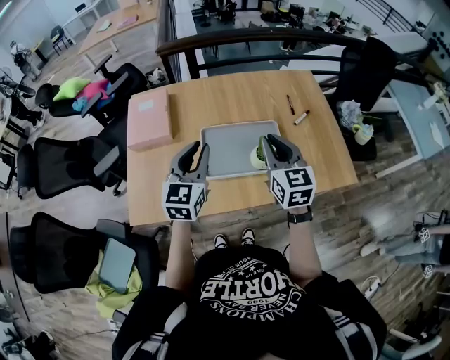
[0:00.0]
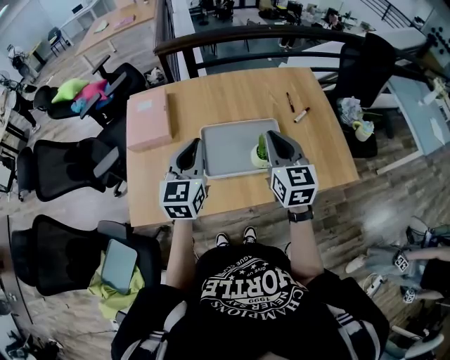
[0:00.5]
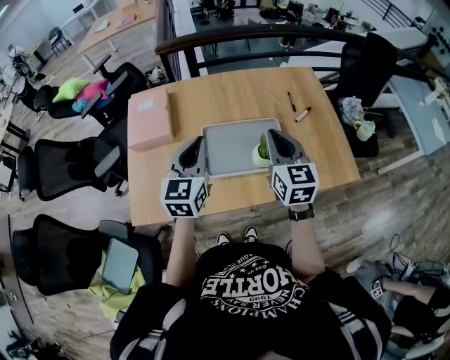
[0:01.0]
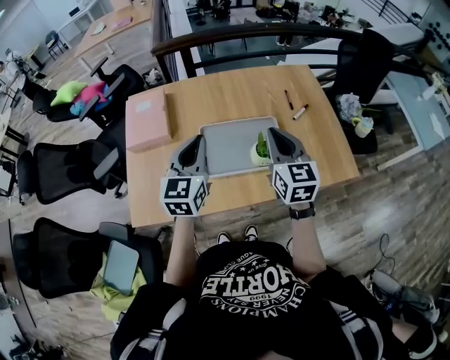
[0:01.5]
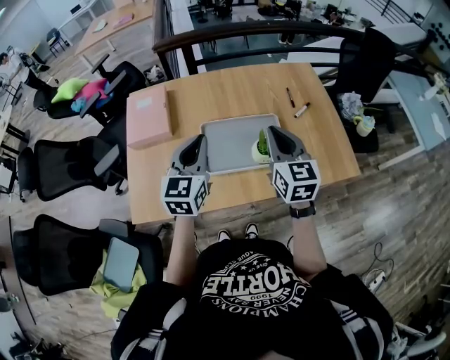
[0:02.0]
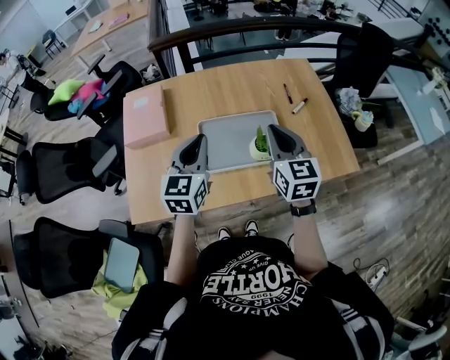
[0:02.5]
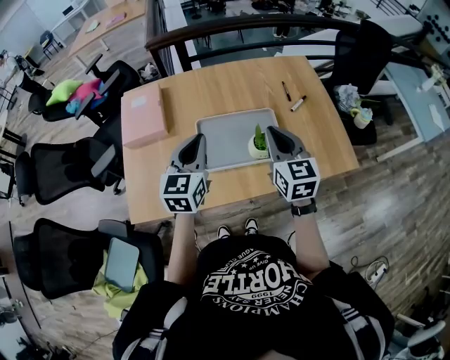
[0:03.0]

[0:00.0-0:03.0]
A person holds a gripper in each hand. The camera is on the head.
0:00.0 to 0:03.0: The grippers move only a little.

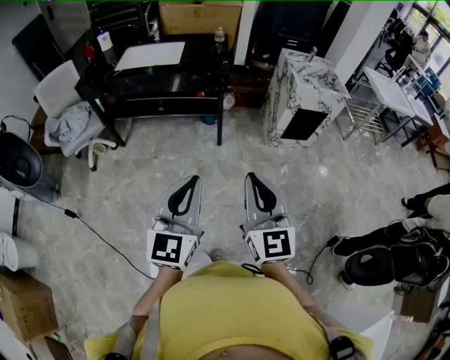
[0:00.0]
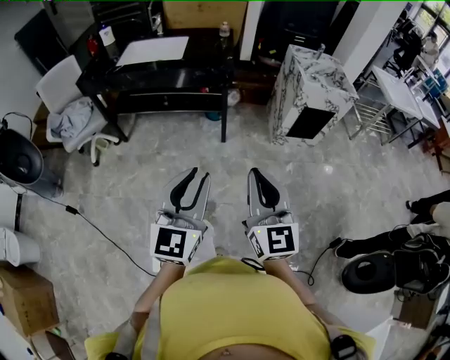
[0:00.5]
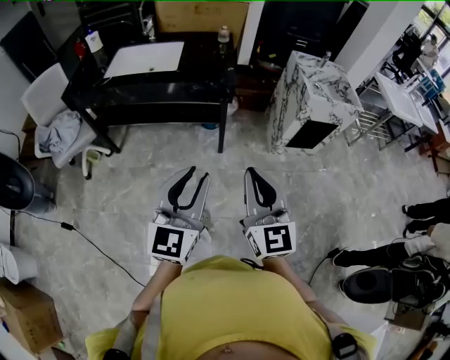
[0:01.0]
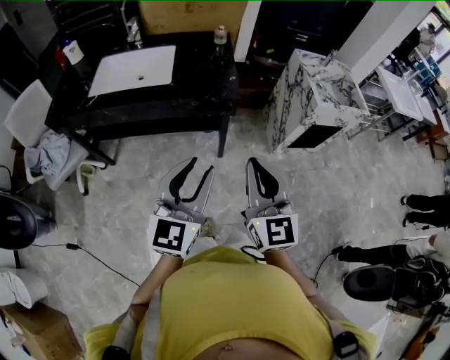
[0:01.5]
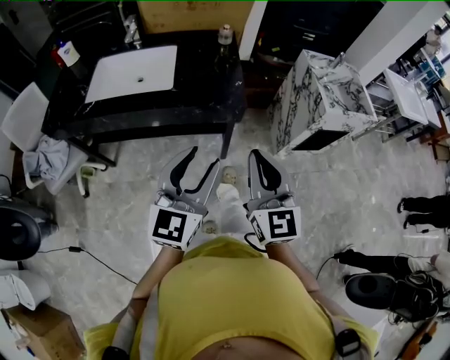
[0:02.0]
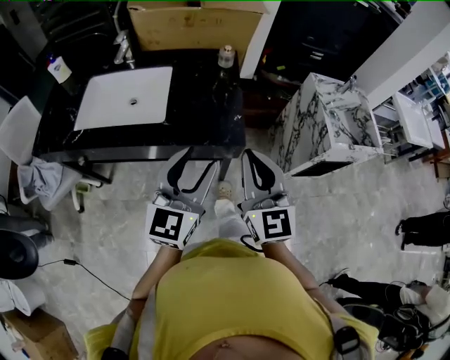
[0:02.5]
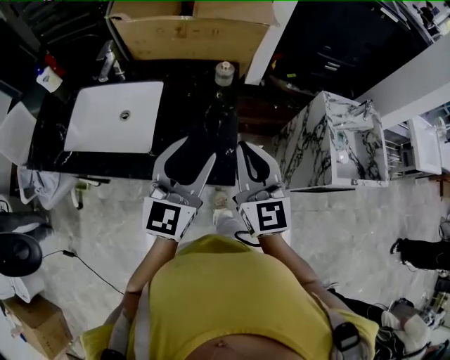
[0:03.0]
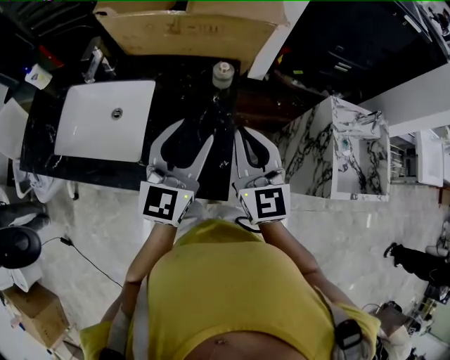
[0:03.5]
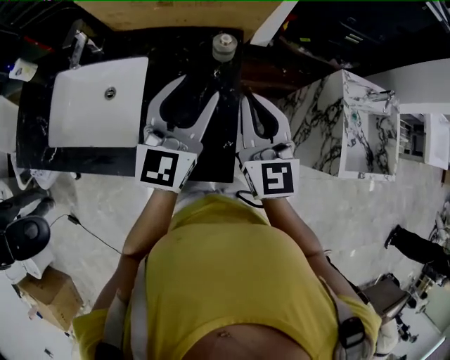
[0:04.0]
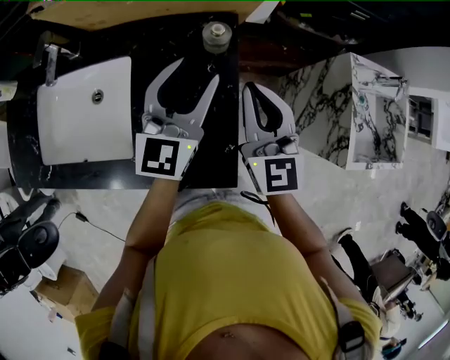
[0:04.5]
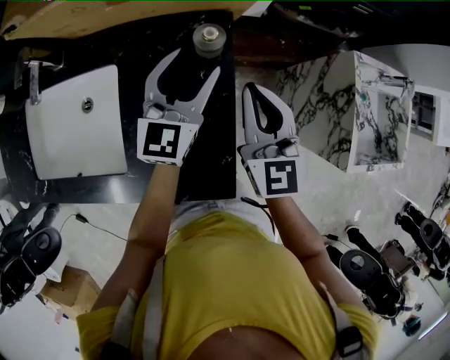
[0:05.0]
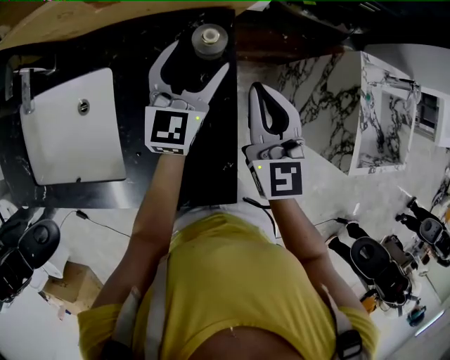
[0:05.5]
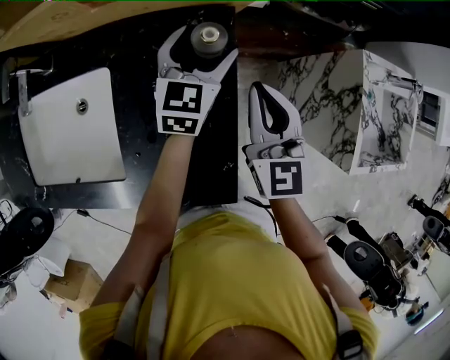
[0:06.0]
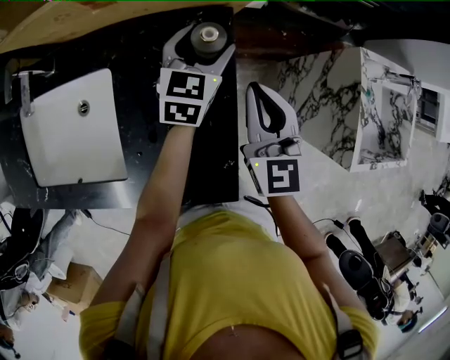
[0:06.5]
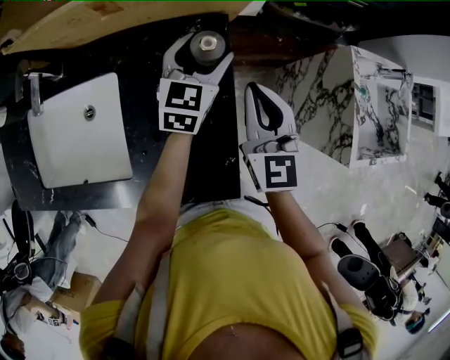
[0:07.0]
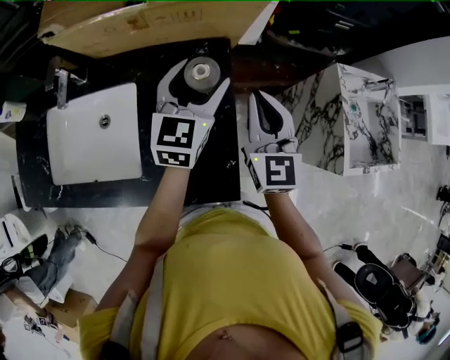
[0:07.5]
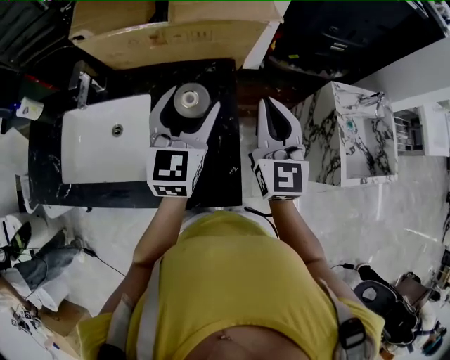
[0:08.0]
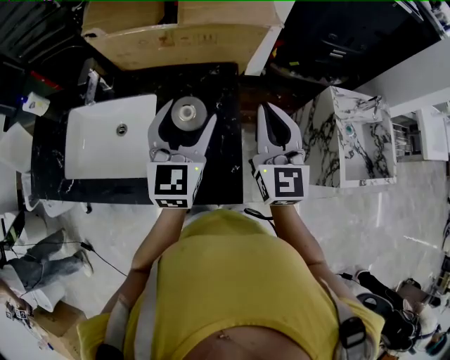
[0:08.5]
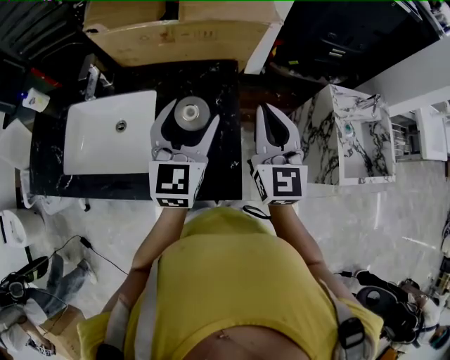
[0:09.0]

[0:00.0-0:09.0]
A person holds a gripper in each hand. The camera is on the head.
0:00.0 to 0:02.0: Both grippers are carried forward, approximately 40 cm. The left gripper opens its fingers.
0:02.0 to 0:04.5: The pair of grippers is taken forward, approximately 60 cm.
0:04.5 to 0:07.0: The right gripper changes place by about 5 cm. Meanwhile the left gripper goes roughly 15 cm downward and forward.
0:07.0 to 0:09.0: The right gripper shifts about 15 cm upward and backward. Meanwhile the left gripper shifts about 25 cm backward and upward.

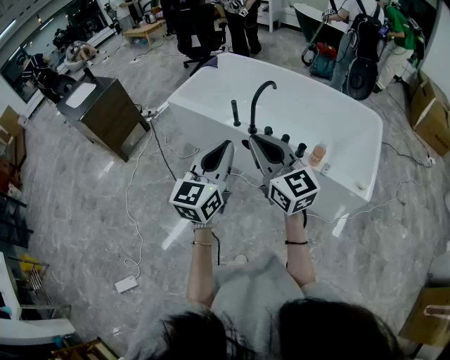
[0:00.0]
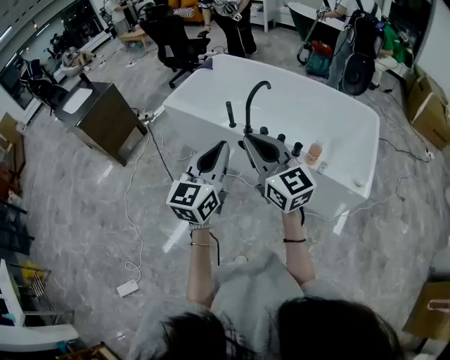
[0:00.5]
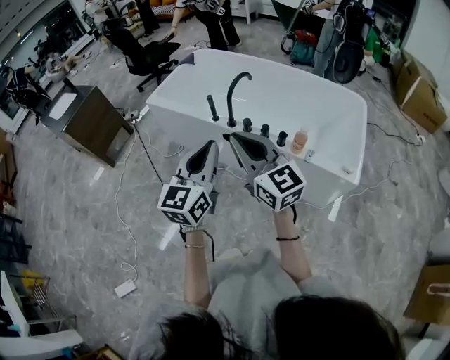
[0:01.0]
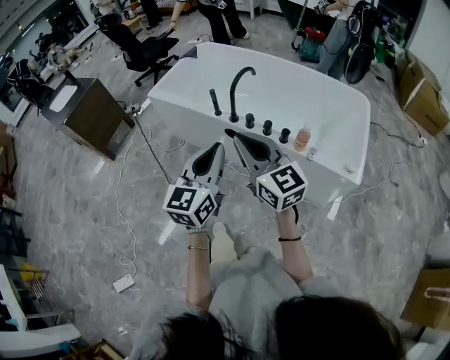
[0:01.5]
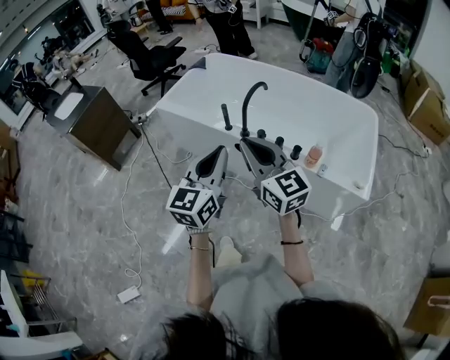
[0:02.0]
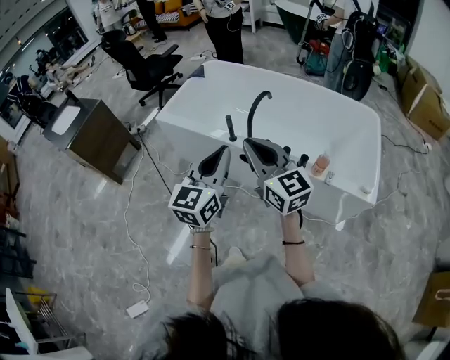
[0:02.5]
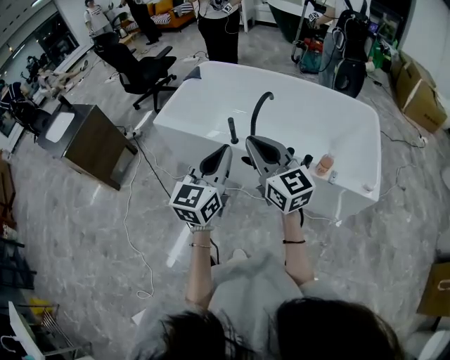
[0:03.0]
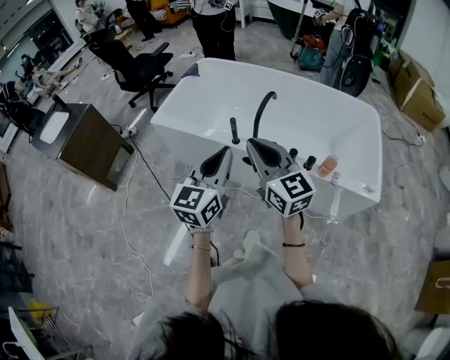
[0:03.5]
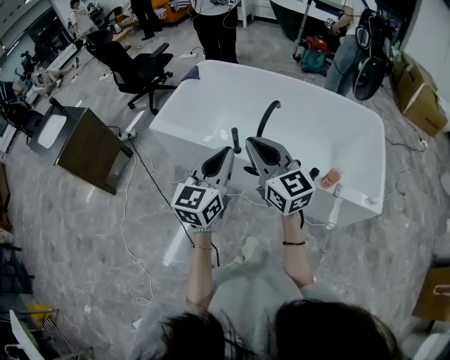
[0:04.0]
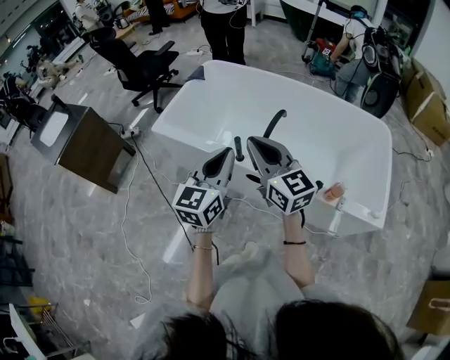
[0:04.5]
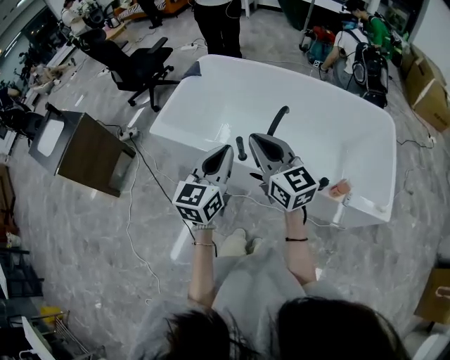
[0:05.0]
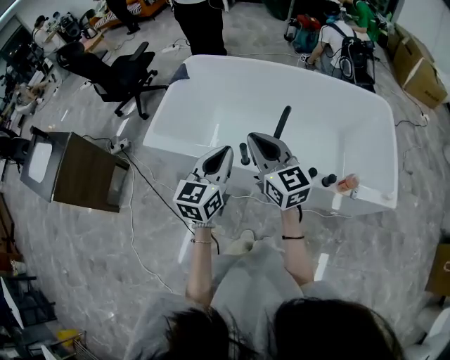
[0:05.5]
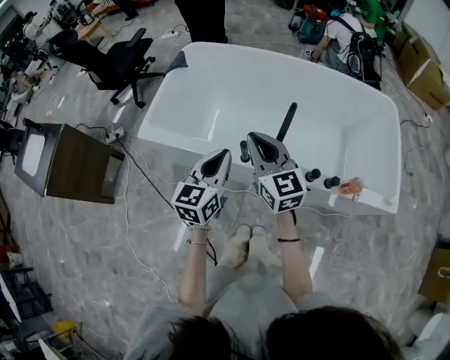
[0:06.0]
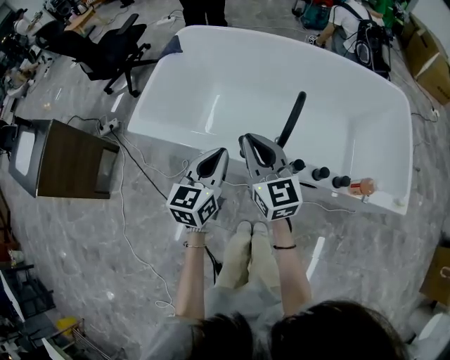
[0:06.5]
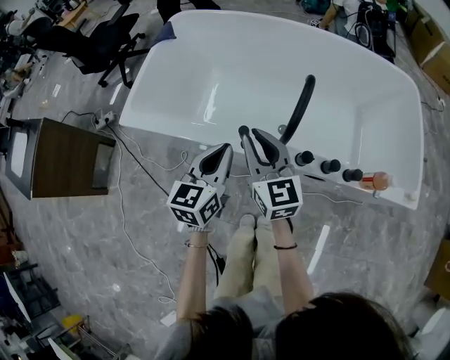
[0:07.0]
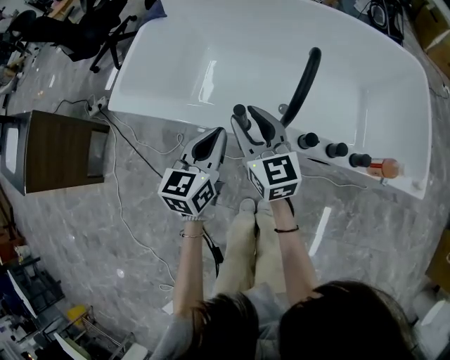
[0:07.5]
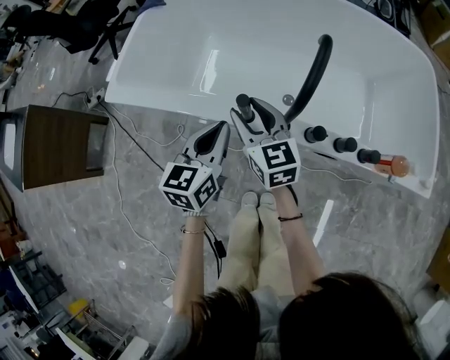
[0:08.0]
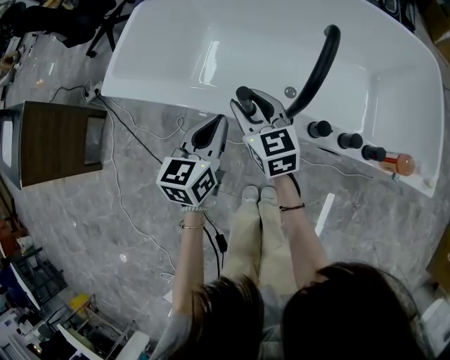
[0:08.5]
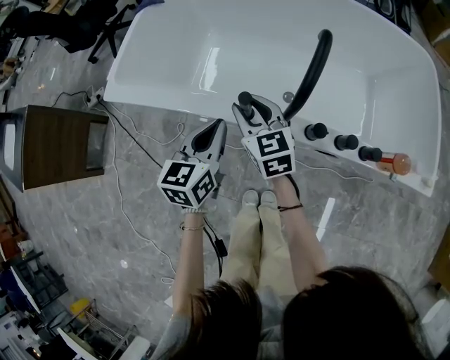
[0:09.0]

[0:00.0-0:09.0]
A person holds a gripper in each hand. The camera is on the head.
0:00.0 to 0:02.0: The right gripper shifts some 5 cm forward. The left gripper ends up about 5 cm from where it was.
0:02.0 to 0:04.5: Both grippers move forward, about 25 cm.
0:04.5 to 0:07.0: The two grippers go some 30 cm downward and forward. The right gripper rotates some 20 degrees.
0:07.0 to 0:09.0: The left gripper travels downward by some 10 cm. Meanwhile the right gripper is displaced downward by about 15 cm, and opens up.

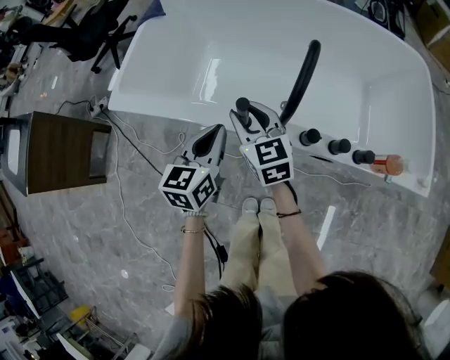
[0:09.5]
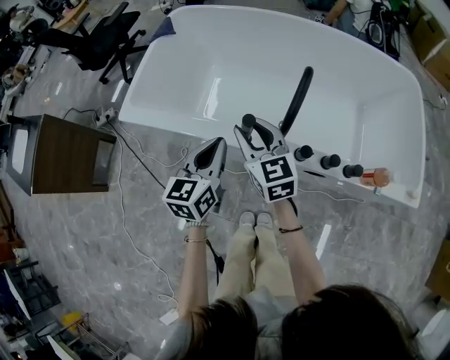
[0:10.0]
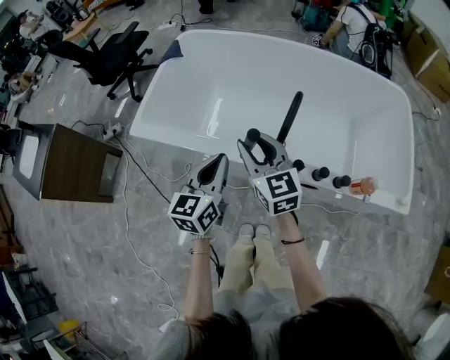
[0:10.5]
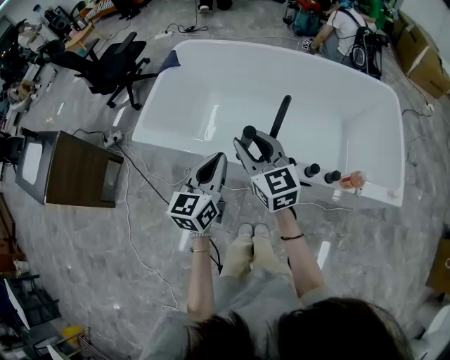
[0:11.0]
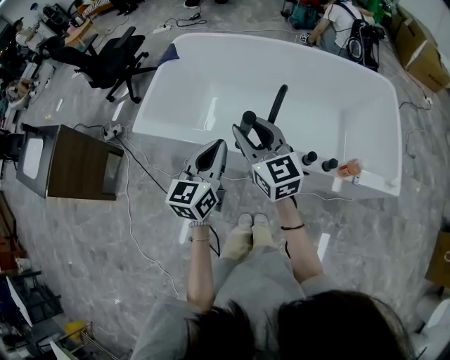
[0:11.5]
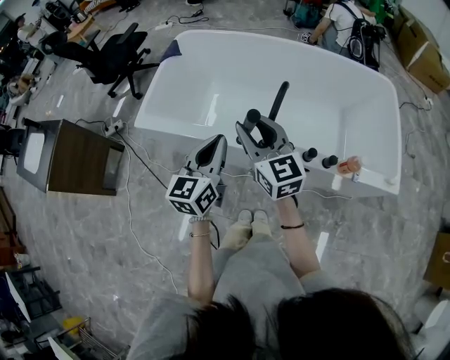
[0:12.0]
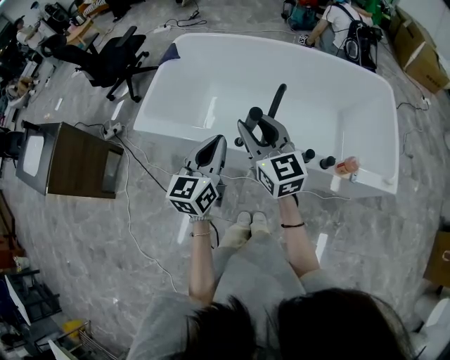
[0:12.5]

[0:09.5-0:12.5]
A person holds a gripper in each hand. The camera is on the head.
0:09.5 to 0:11.0: The two grippers go roughly 20 cm upward.
0:11.0 to 0:12.5: The right gripper heads upward, covering approximately 5 cm.

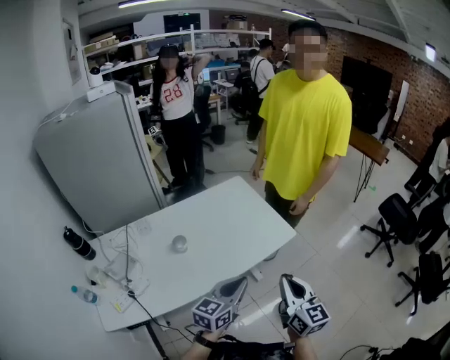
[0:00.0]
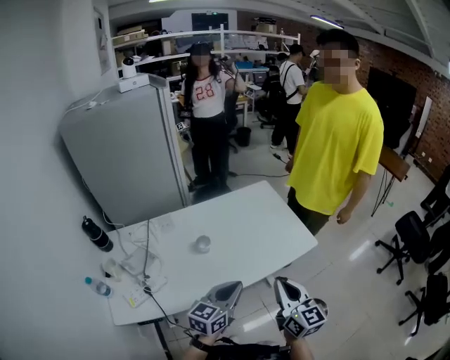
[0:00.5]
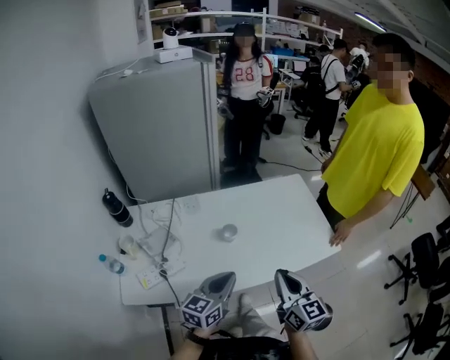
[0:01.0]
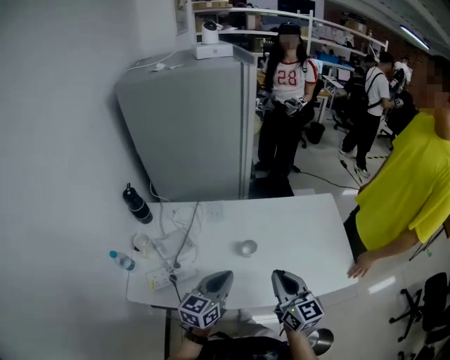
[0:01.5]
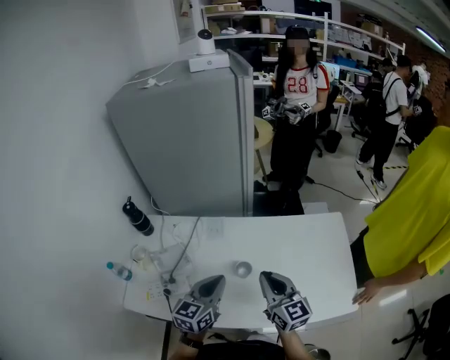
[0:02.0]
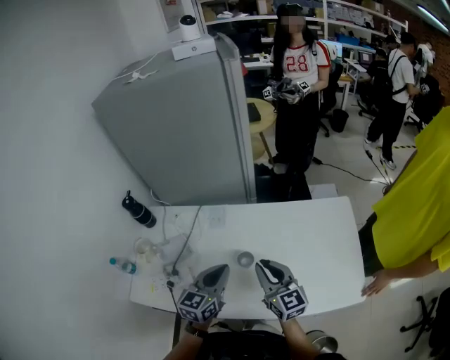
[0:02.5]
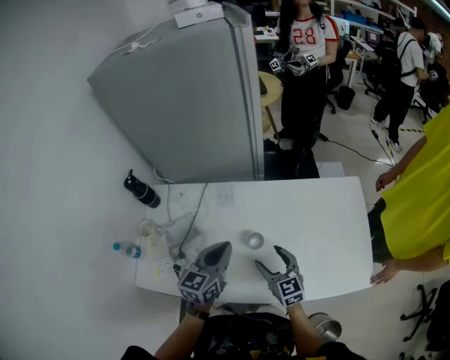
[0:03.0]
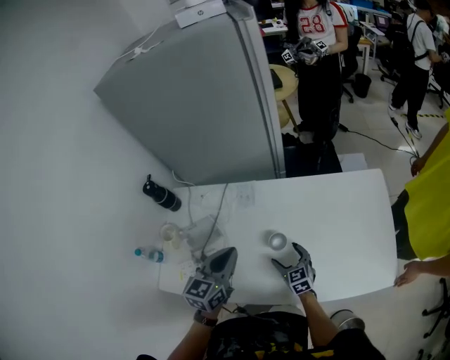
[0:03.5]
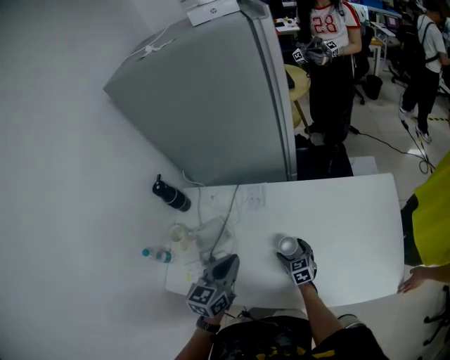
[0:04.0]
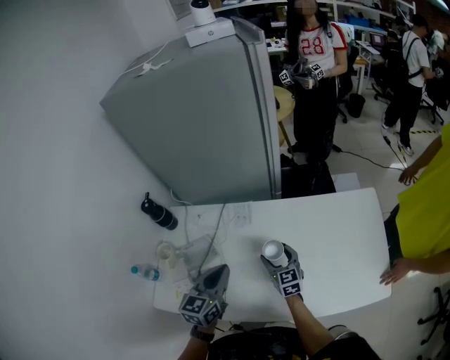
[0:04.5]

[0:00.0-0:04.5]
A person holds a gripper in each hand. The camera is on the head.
0:00.0 to 0:02.0: The left gripper changes place by roughly 35 cm, and rotates roughly 40 degrees. Meanwhile the right gripper shifts by about 40 cm, and turns by roughly 40 degrees.
0:02.0 to 0:04.5: The left gripper goes about 10 cm to the left and forward, while the right gripper shifts some 25 cm downward and forward, and opens.
